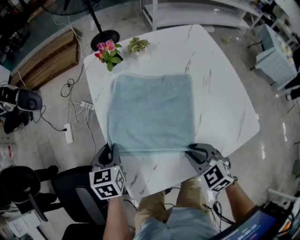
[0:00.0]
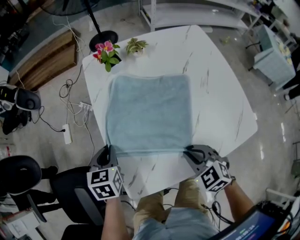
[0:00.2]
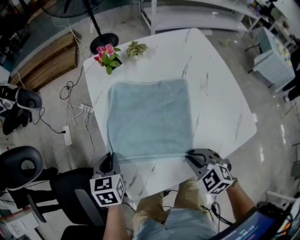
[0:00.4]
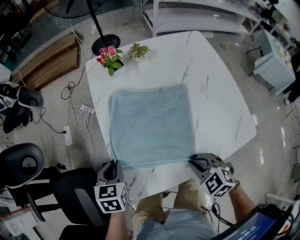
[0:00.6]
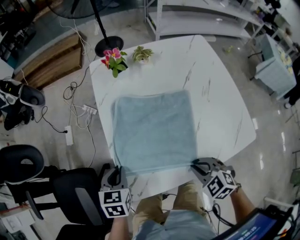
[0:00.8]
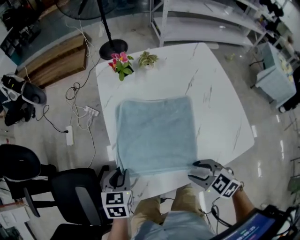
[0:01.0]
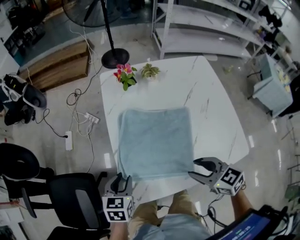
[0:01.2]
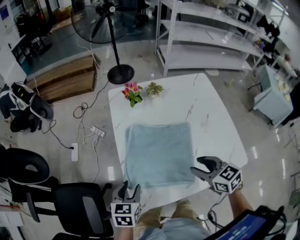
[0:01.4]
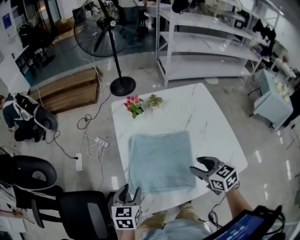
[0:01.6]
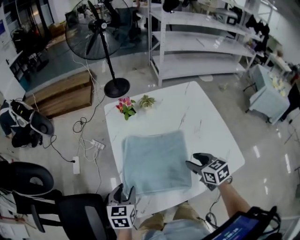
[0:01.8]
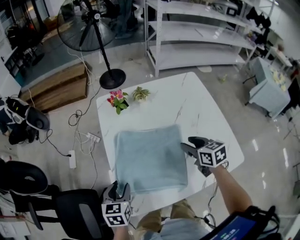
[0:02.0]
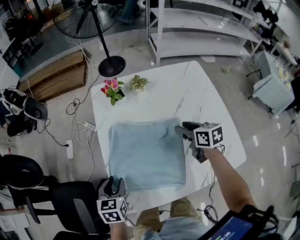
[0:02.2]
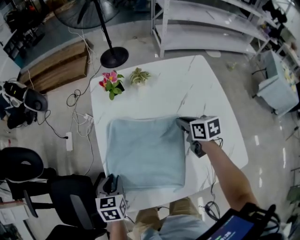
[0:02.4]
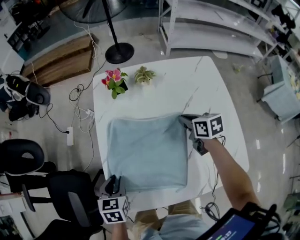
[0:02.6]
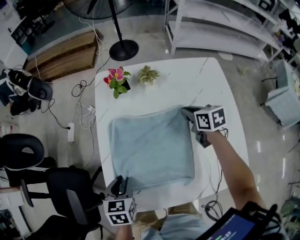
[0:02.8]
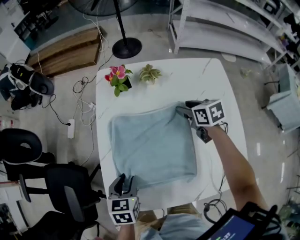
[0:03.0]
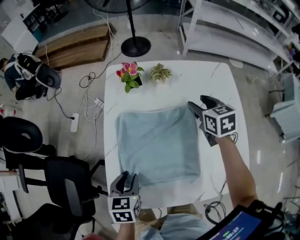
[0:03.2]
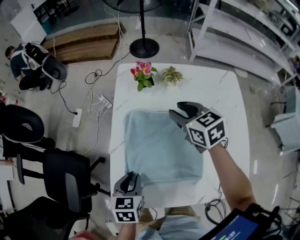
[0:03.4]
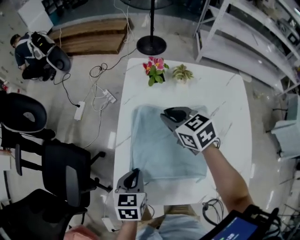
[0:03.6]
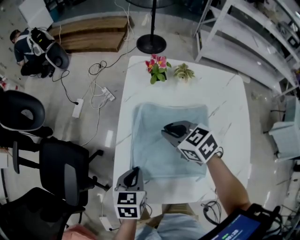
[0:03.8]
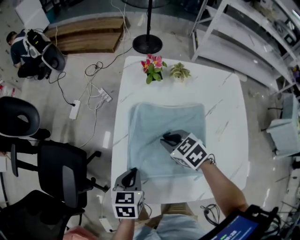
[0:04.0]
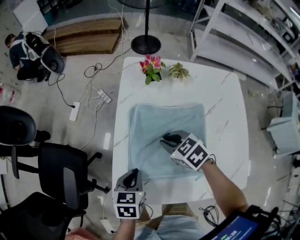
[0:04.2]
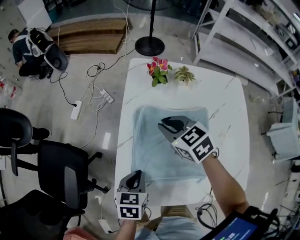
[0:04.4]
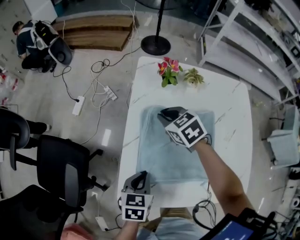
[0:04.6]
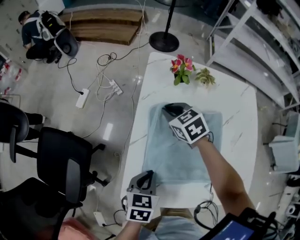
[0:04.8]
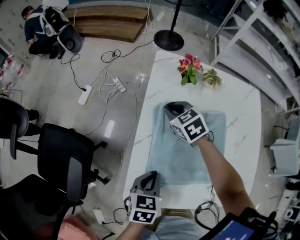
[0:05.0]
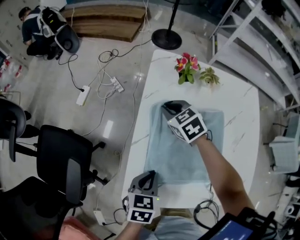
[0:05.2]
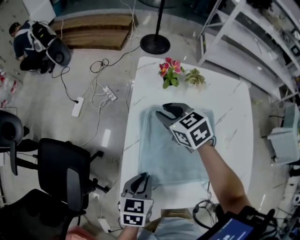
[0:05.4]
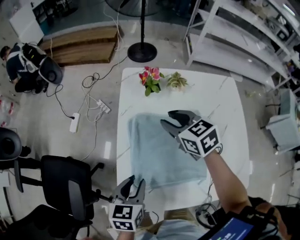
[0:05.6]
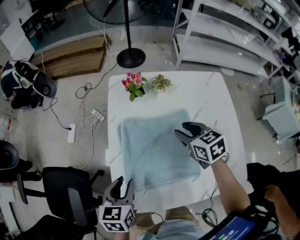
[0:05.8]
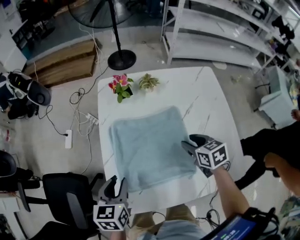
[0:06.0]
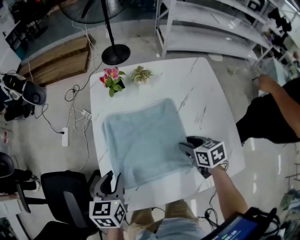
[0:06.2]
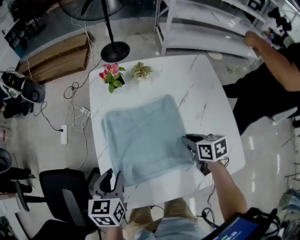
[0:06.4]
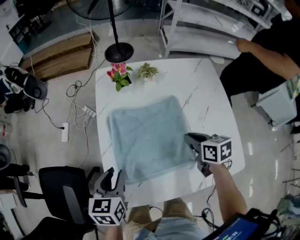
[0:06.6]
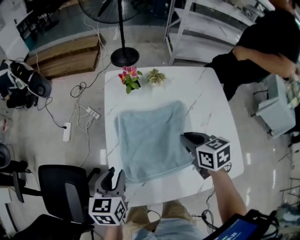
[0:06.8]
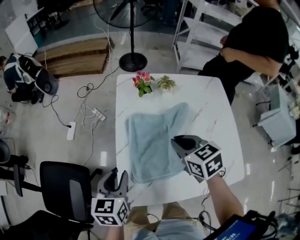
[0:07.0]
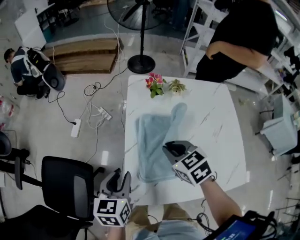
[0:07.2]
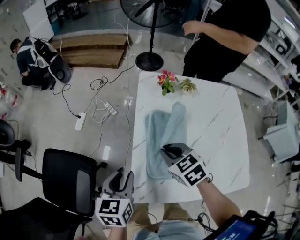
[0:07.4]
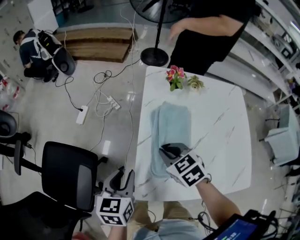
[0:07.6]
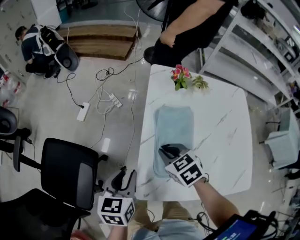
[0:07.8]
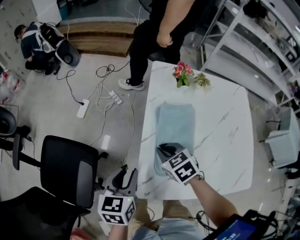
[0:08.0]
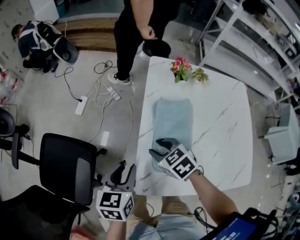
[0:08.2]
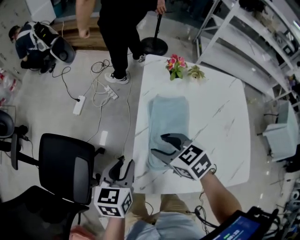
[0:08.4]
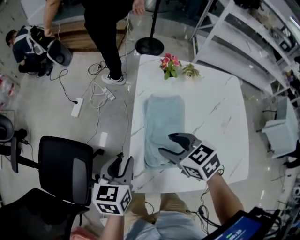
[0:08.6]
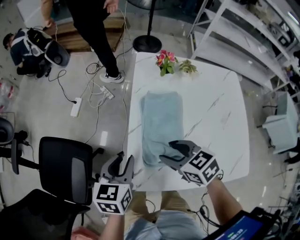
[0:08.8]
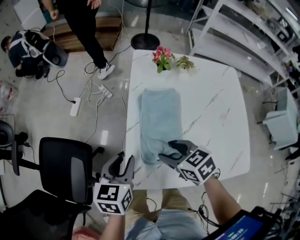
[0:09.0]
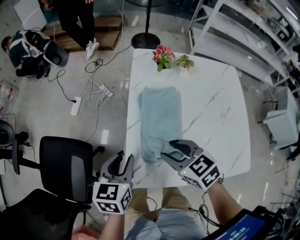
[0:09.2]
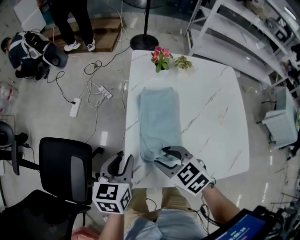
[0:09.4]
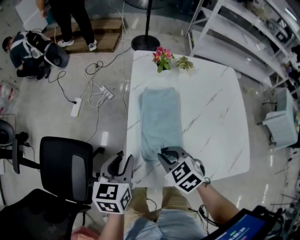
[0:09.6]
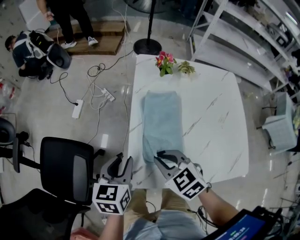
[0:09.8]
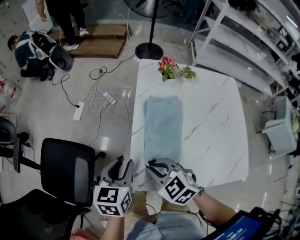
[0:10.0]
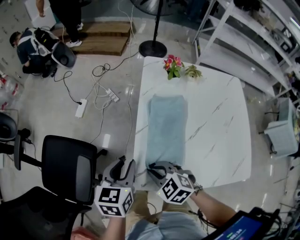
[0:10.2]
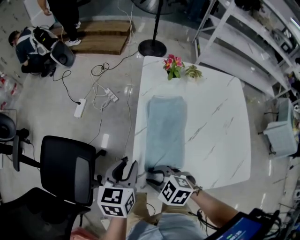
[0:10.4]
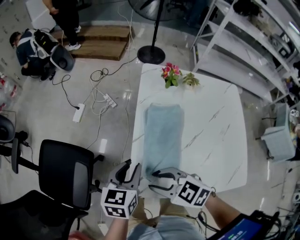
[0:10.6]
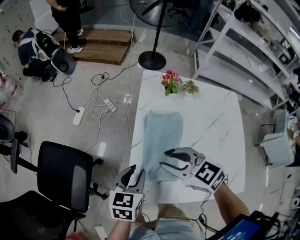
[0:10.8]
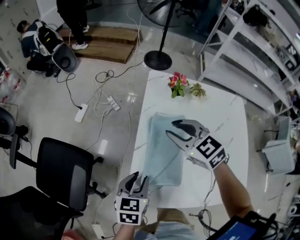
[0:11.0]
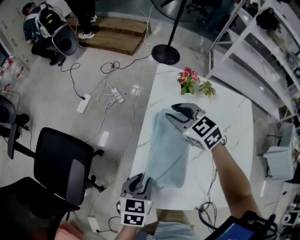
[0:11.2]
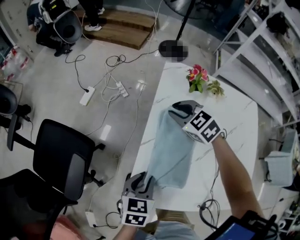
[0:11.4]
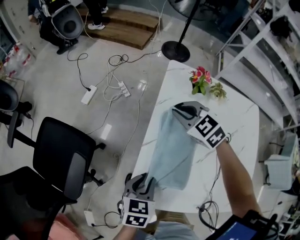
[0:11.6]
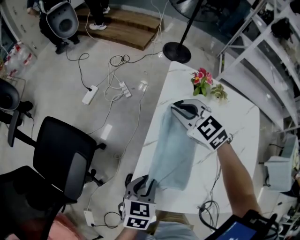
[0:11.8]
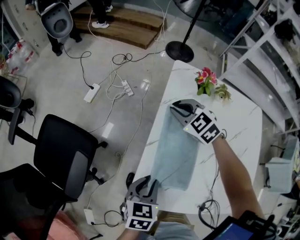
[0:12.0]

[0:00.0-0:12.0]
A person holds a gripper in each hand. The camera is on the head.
0:00.0 to 0:01.6: The right gripper heads upward and forward, covering roughly 10 cm, changes its angle by approximately 20 degrees, and opens. The left gripper shifts about 10 cm backward and upward, and opens its fingers.
0:01.6 to 0:03.0: The left gripper moves to the right and downward, some 10 cm; the right gripper is displaced forward by about 25 cm, and closes and opens again.
0:03.0 to 0:04.4: The left gripper closes. The right gripper is displaced to the left by roughly 25 cm, changes its angle by roughly 30 degrees, and closes its fingers.
0:04.4 to 0:06.0: The left gripper travels upward by roughly 5 cm, and opens up, while the right gripper shifts some 20 cm to the right and backward, turns by roughly 30 degrees, and opens.
0:06.0 to 0:07.6: The right gripper moves to the left, some 30 cm, turns by roughly 30 degrees, and closes its fingers. Meanwhile the left gripper shifts roughly 10 cm to the left.
0:07.6 to 0:09.0: The right gripper goes up and down, approximately 10 cm each way, reversing 2 times, and opens.
0:09.0 to 0:10.4: The right gripper moves to the left and backward, about 15 cm, turns by roughly 30 degrees, and closes its fingers.
0:10.4 to 0:12.0: The left gripper heads downward and to the right, covering about 10 cm; the right gripper is displaced forward by some 30 cm.

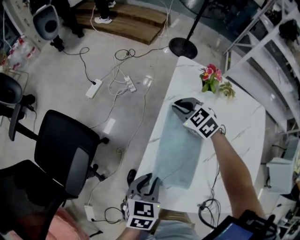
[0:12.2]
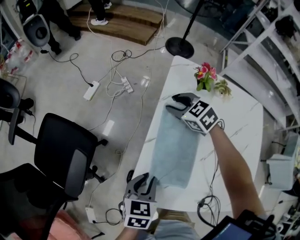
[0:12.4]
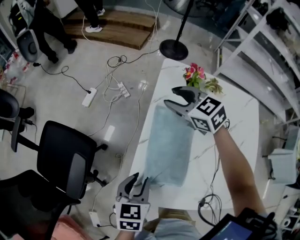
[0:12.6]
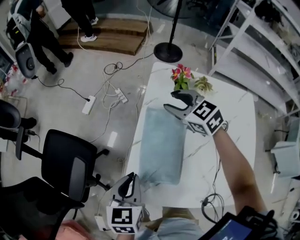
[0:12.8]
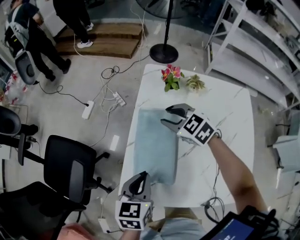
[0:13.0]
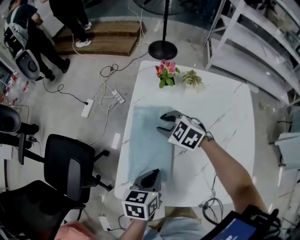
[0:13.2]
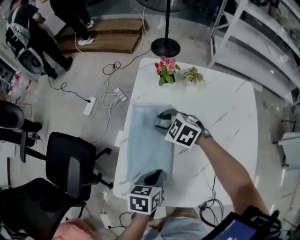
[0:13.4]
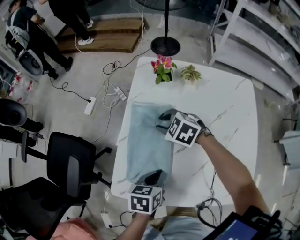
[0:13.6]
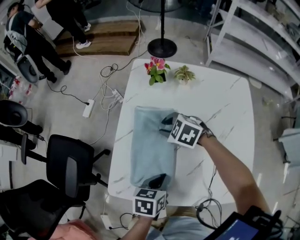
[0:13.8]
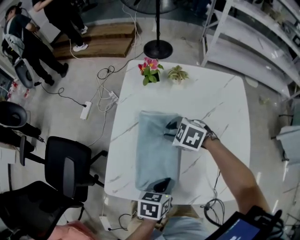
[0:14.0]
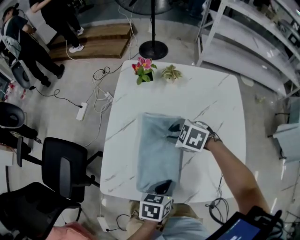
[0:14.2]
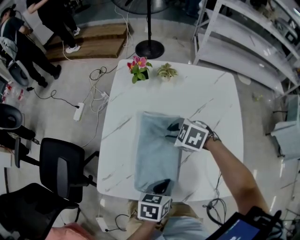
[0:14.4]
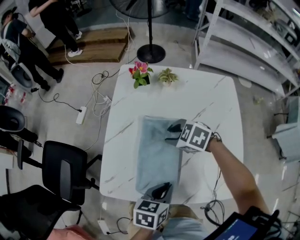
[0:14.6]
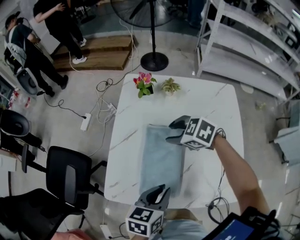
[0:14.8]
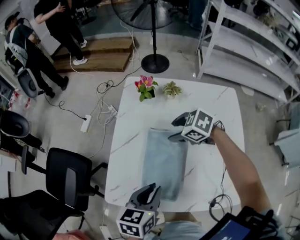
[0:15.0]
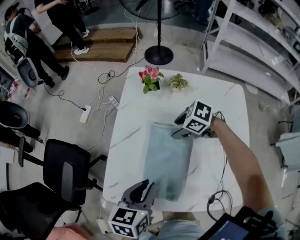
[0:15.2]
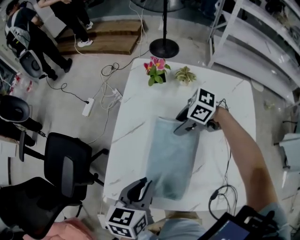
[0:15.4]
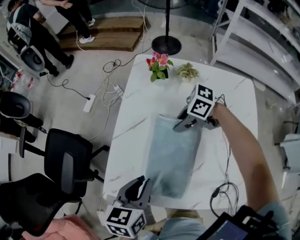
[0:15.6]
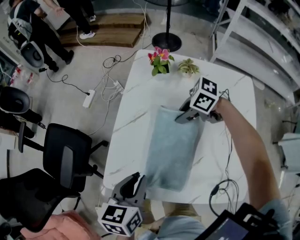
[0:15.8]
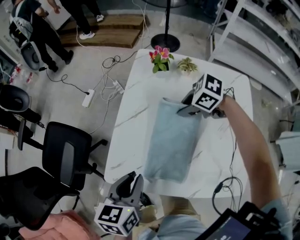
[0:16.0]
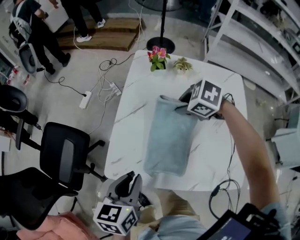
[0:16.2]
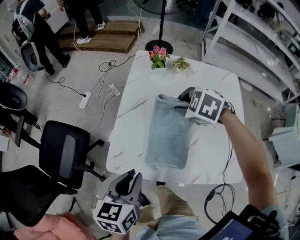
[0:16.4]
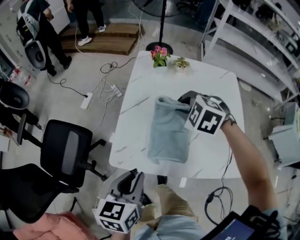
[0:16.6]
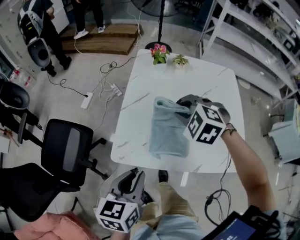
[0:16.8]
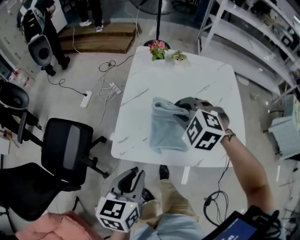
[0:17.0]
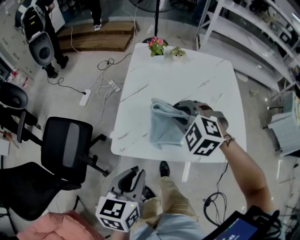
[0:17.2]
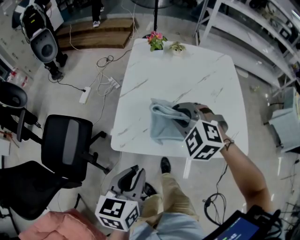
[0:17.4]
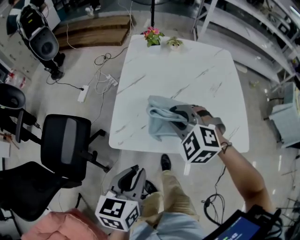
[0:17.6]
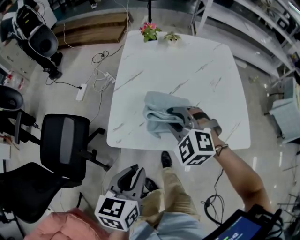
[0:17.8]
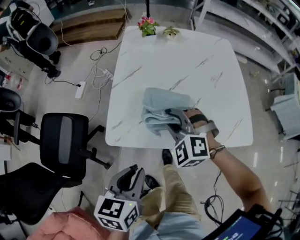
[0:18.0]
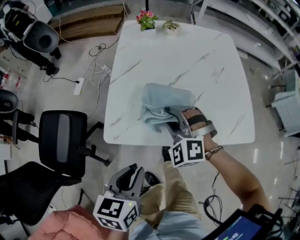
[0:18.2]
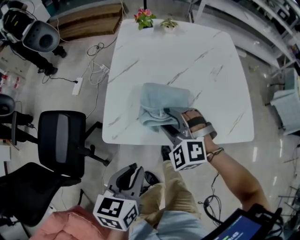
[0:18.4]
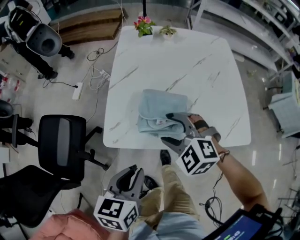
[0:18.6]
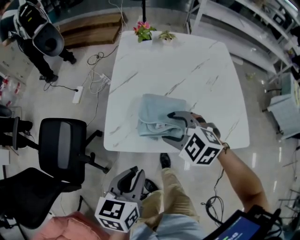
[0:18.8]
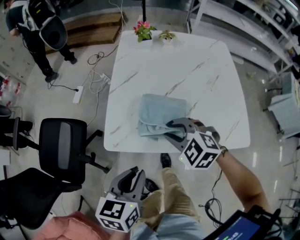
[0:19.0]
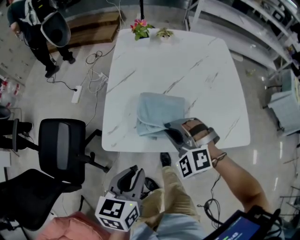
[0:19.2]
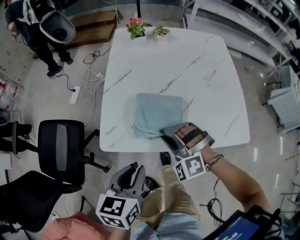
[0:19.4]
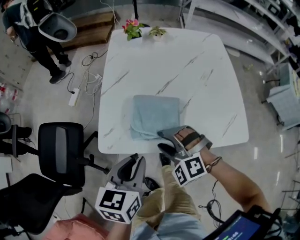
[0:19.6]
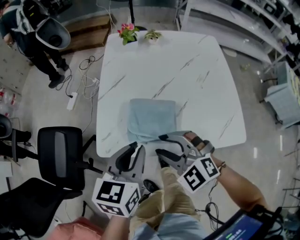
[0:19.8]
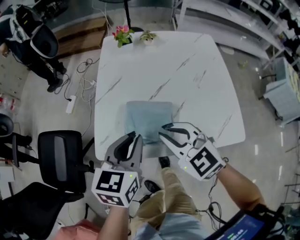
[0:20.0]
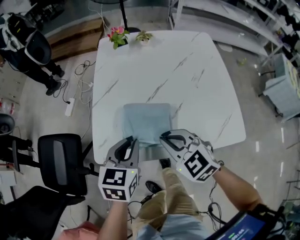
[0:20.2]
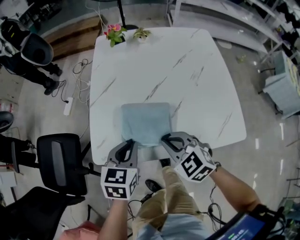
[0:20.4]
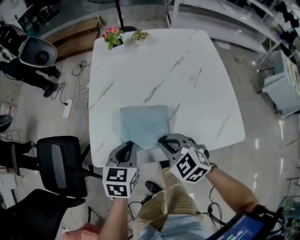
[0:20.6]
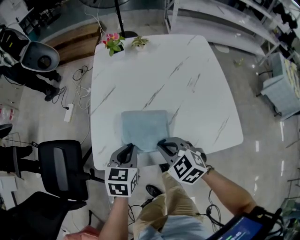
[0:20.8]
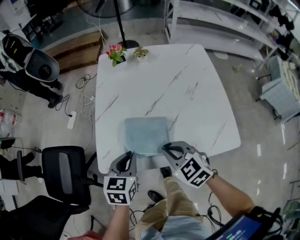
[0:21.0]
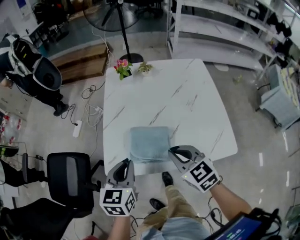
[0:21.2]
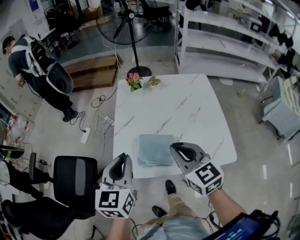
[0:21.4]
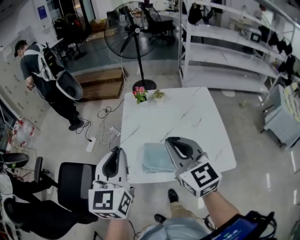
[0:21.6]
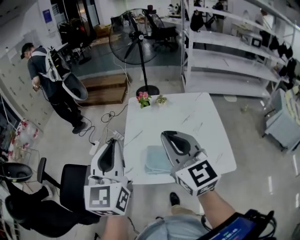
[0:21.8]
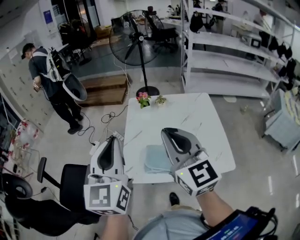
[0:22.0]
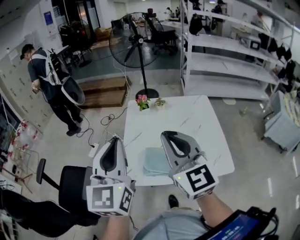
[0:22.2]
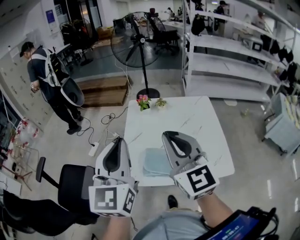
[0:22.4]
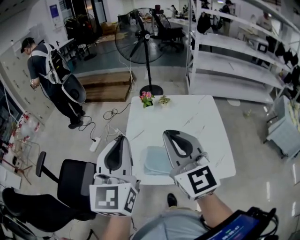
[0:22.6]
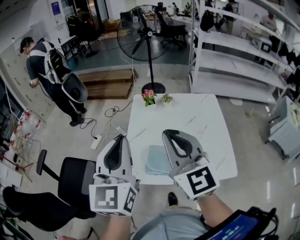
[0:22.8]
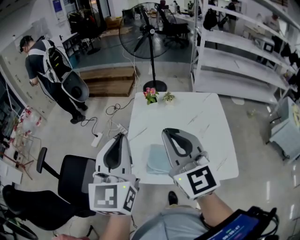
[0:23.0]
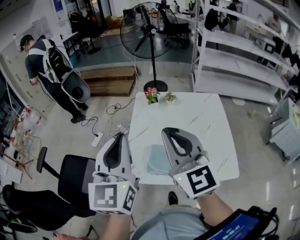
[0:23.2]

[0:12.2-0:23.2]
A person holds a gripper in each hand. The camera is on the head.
0:12.2 to 0:13.8: The left gripper is displaced to the right by some 15 cm. Meanwhile the right gripper travels backward and to the right by about 15 cm.
0:13.8 to 0:15.4: The right gripper goes upward and returns, approximately 5 cm each way, turns by about 30 degrees, and opens up. Meanwhile the left gripper shifts approximately 10 cm upward.
0:15.4 to 0:17.0: The left gripper changes place by approximately 15 cm. The right gripper changes place by approximately 20 cm, swivels approximately 60 degrees, and closes up.
0:17.0 to 0:18.4: The right gripper heads downward and backward, covering roughly 15 cm, and opens; the left gripper shifts approximately 5 cm downward.
0:18.4 to 0:20.0: The left gripper heads forward, to the right and upward, covering about 15 cm, while the right gripper is displaced upward by approximately 10 cm, rotates approximately 40 degrees, and closes its fingers.
0:20.0 to 0:21.6: The two grippers go some 20 cm upward. The right gripper turns by about 30 degrees; the left gripper rotates roughly 30 degrees.
0:21.6 to 0:23.2: The two grippers go about 5 cm upward.
